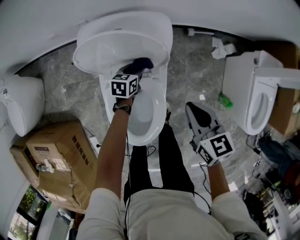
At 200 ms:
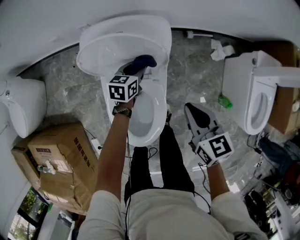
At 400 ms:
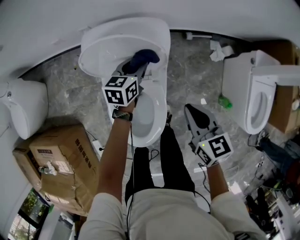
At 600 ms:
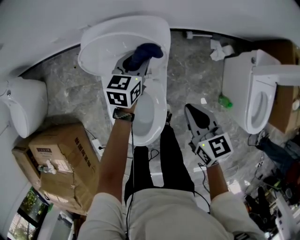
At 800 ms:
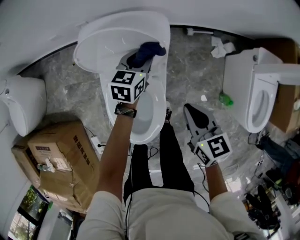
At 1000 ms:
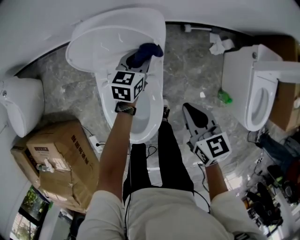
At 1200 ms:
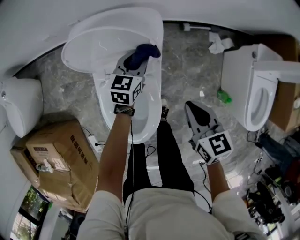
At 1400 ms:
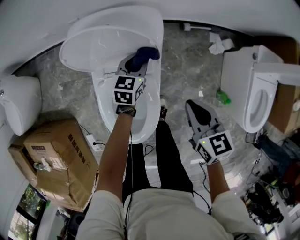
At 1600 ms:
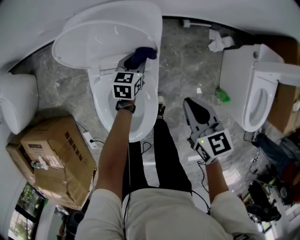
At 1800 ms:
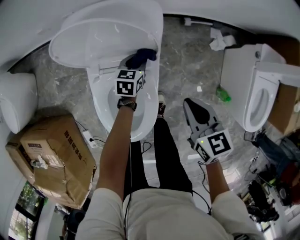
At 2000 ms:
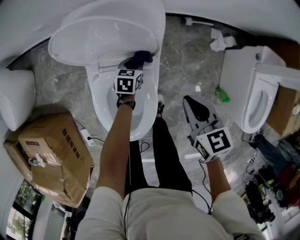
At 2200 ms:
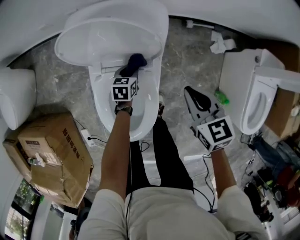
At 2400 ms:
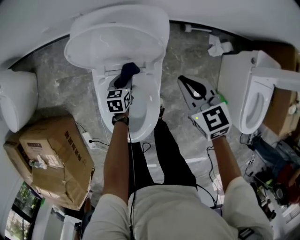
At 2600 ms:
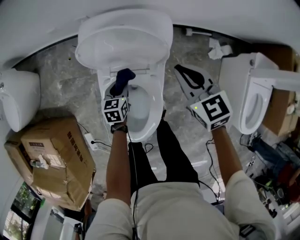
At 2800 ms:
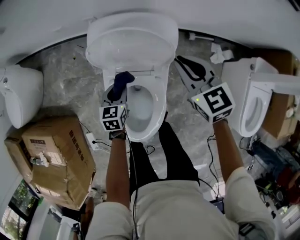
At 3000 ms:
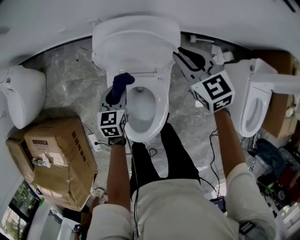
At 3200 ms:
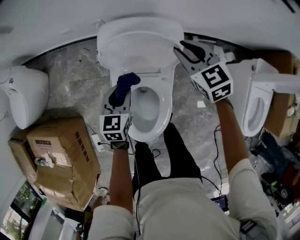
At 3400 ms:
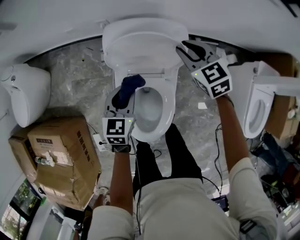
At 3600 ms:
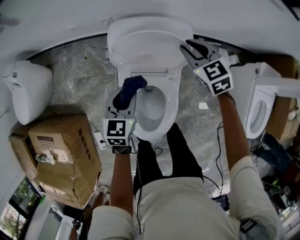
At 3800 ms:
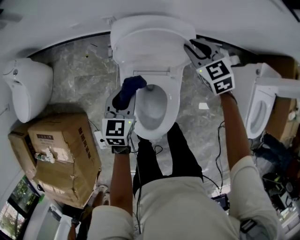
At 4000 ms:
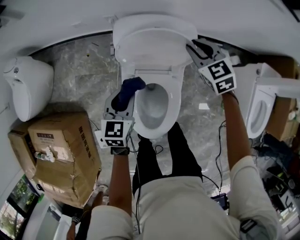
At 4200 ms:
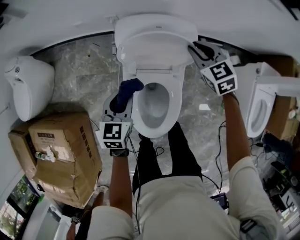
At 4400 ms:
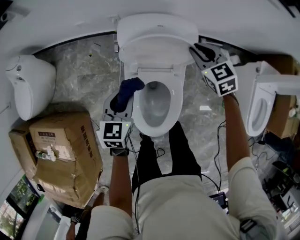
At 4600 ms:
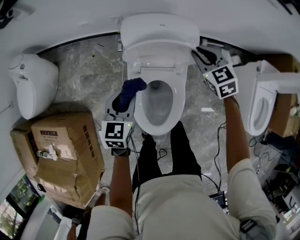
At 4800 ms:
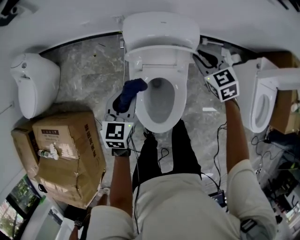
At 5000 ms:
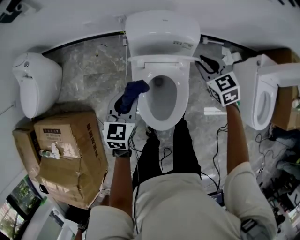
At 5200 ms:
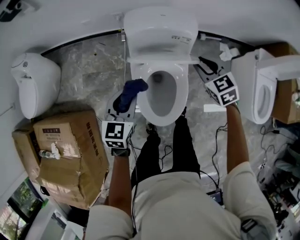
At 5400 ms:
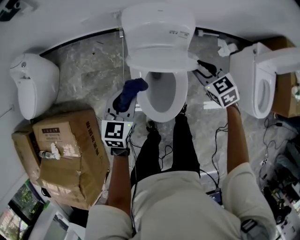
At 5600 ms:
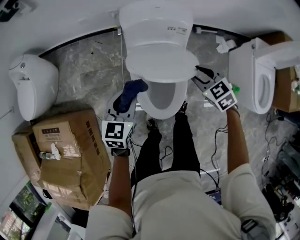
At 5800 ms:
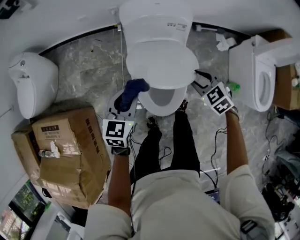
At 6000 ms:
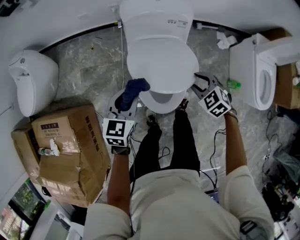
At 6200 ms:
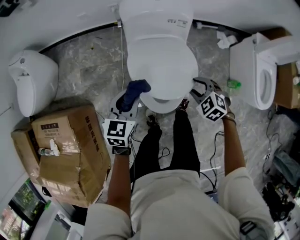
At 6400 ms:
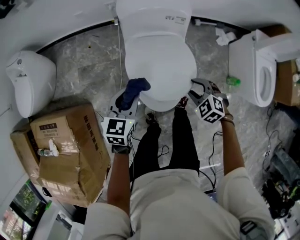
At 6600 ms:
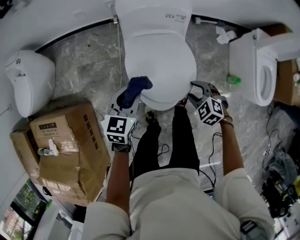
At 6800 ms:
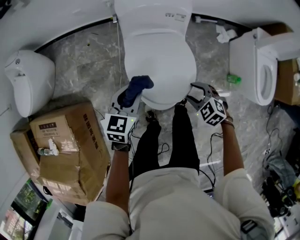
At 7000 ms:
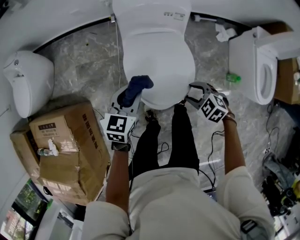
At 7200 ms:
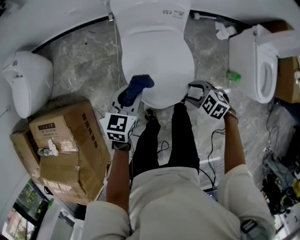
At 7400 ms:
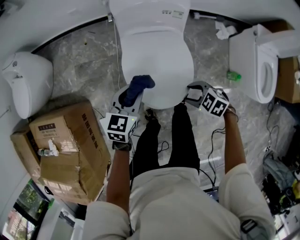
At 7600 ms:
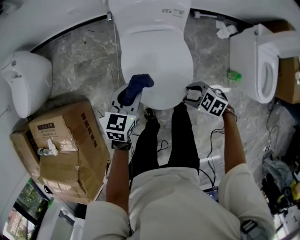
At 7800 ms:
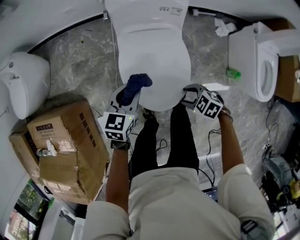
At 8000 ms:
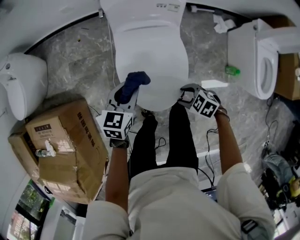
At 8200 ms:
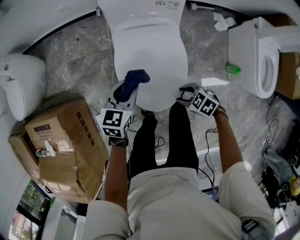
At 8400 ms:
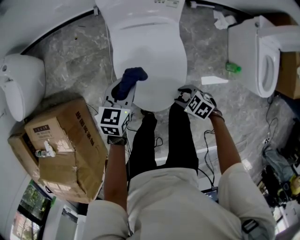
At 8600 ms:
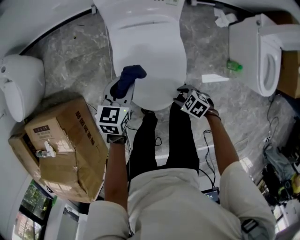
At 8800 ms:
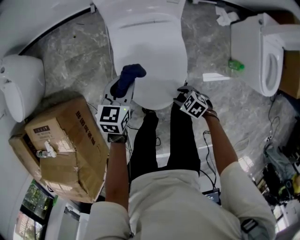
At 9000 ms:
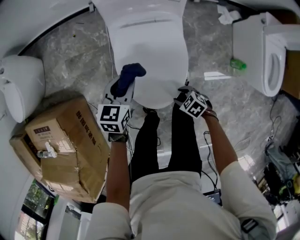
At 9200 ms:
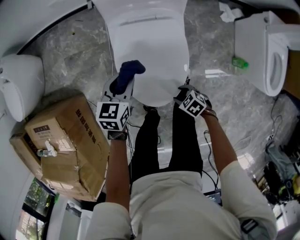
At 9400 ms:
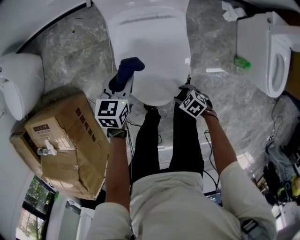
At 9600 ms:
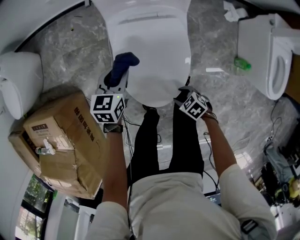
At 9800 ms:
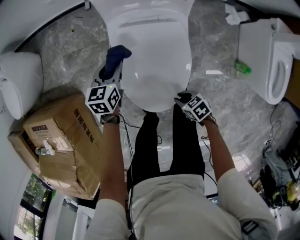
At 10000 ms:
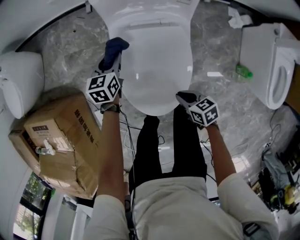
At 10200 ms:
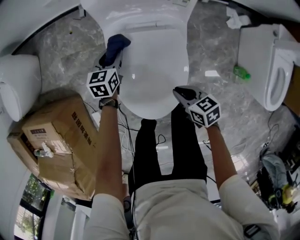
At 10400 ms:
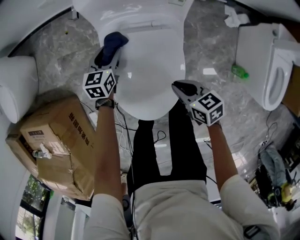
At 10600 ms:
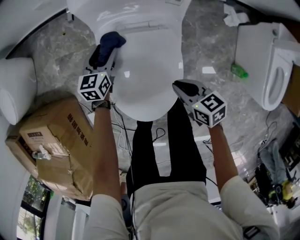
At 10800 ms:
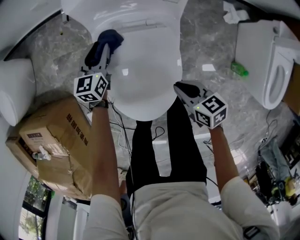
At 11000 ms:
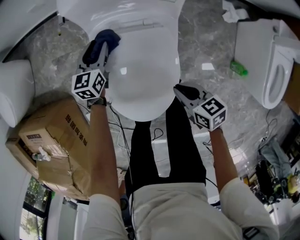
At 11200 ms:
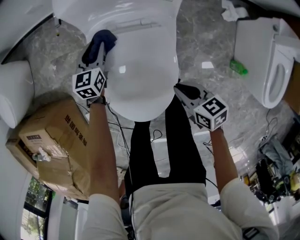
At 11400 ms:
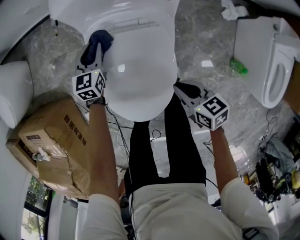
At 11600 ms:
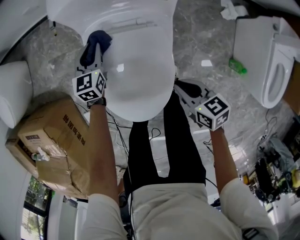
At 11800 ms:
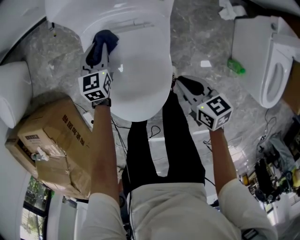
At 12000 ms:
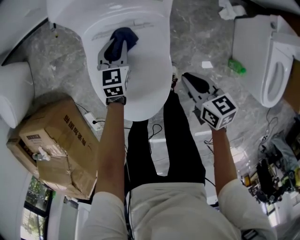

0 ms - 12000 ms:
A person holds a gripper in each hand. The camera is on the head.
0 ms - 1600 ms: The left gripper travels to the right by roughly 5 cm, and moves about 15 cm upward and comes back.
1600 ms - 3000 ms: The right gripper is displaced forward, to the left and upward by some 20 cm, and turns by some 30 degrees; the left gripper travels to the left, upward and backward by roughly 20 cm.
3000 ms - 4400 ms: The left gripper goes roughly 10 cm upward and to the left.
4400 ms - 6000 ms: The right gripper travels backward by approximately 30 cm, and turns by approximately 20 degrees. The left gripper is displaced backward by roughly 15 cm.
6000 ms - 7600 ms: The left gripper ends up approximately 5 cm from where it was, while the right gripper is displaced backward and downward by approximately 10 cm, and rotates about 30 degrees.
7600 ms - 9000 ms: The right gripper shifts about 15 cm downward; the left gripper moves downward, approximately 10 cm.
9000 ms - 10400 ms: The left gripper shifts by roughly 20 cm, and opens. The right gripper changes place by roughly 20 cm, changes its angle by about 40 degrees, and closes.
10400 ms - 12000 ms: Both grippers travel together to the right, about 10 cm. The left gripper closes its fingers.

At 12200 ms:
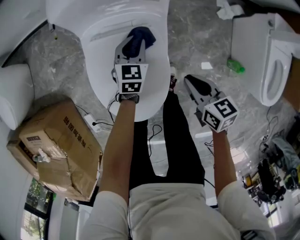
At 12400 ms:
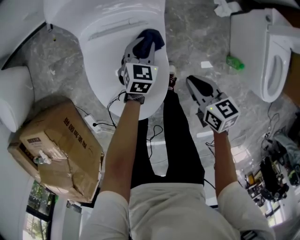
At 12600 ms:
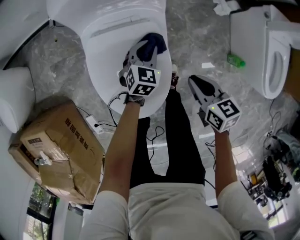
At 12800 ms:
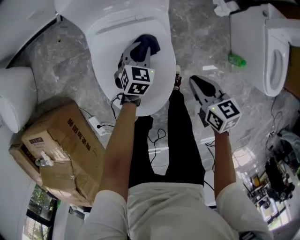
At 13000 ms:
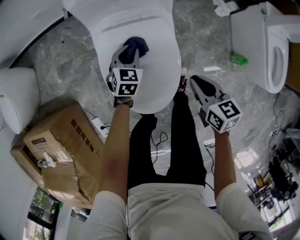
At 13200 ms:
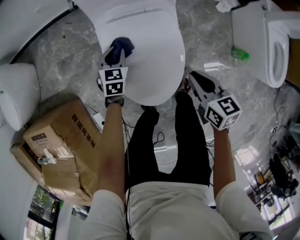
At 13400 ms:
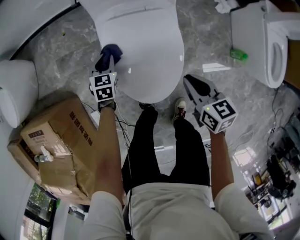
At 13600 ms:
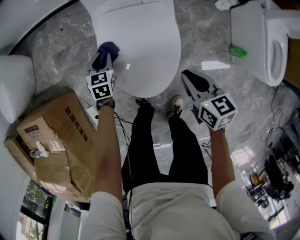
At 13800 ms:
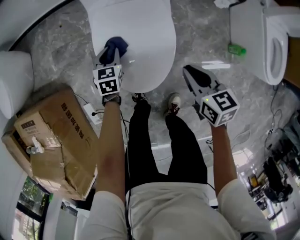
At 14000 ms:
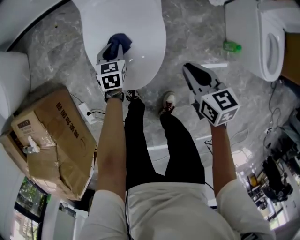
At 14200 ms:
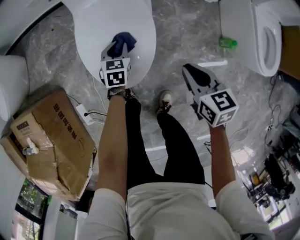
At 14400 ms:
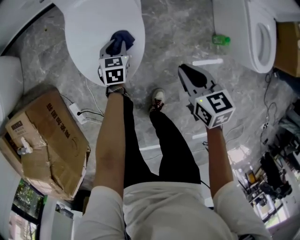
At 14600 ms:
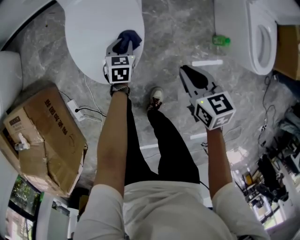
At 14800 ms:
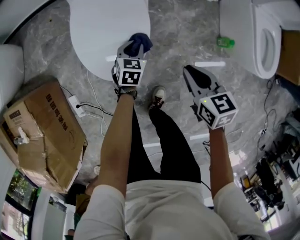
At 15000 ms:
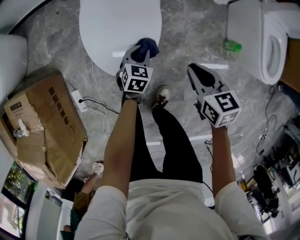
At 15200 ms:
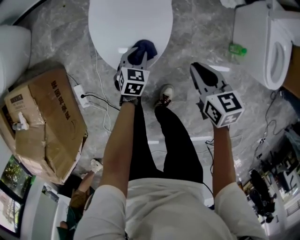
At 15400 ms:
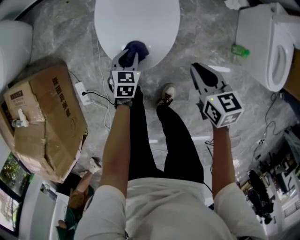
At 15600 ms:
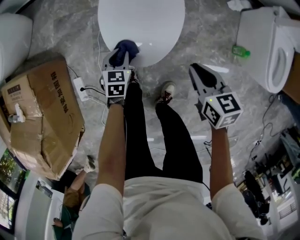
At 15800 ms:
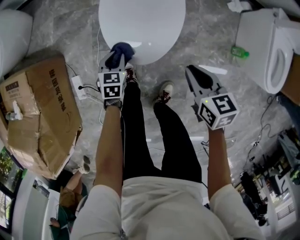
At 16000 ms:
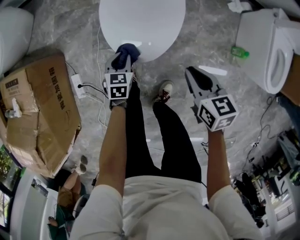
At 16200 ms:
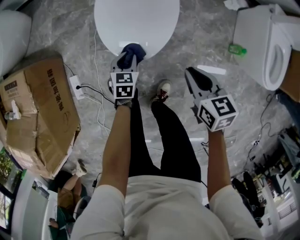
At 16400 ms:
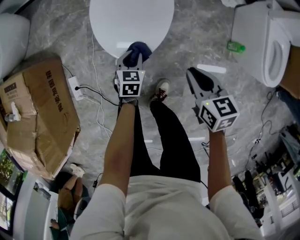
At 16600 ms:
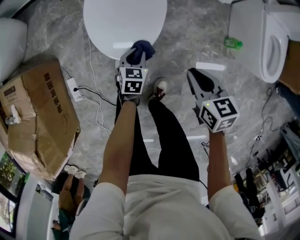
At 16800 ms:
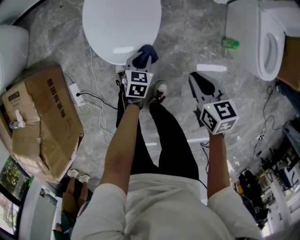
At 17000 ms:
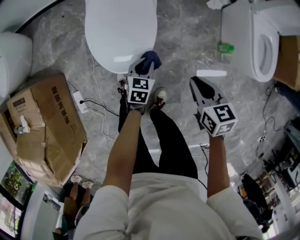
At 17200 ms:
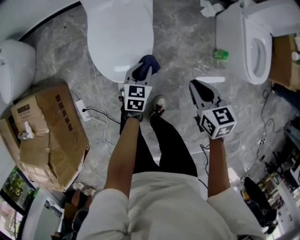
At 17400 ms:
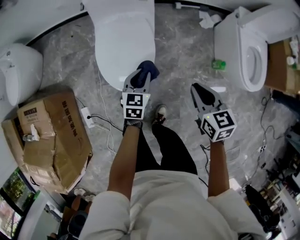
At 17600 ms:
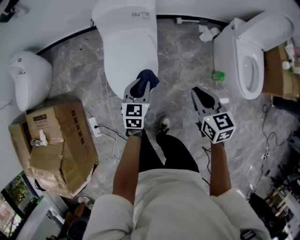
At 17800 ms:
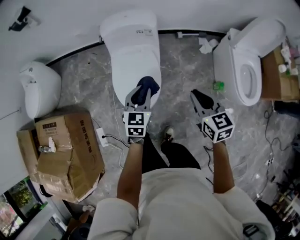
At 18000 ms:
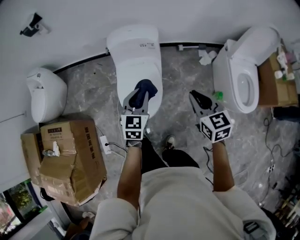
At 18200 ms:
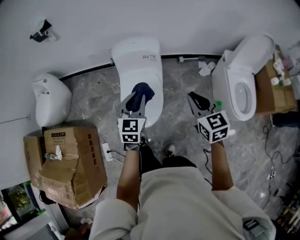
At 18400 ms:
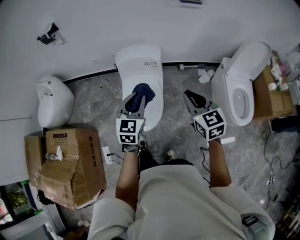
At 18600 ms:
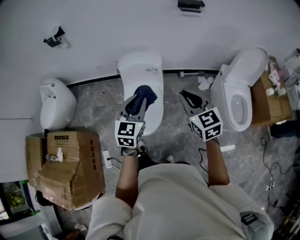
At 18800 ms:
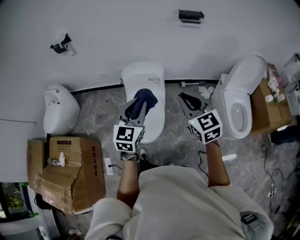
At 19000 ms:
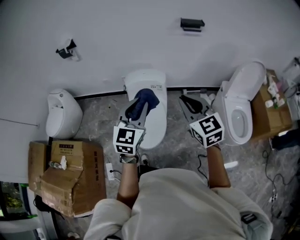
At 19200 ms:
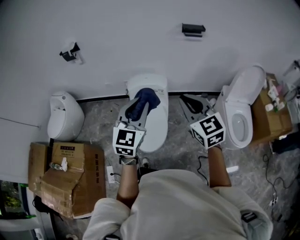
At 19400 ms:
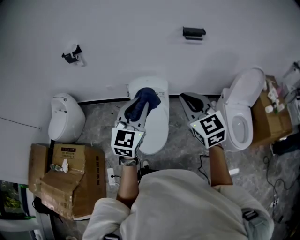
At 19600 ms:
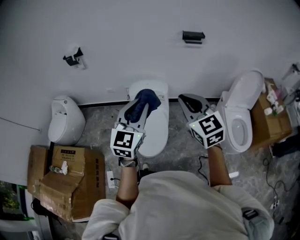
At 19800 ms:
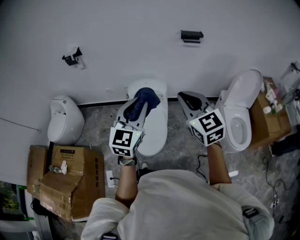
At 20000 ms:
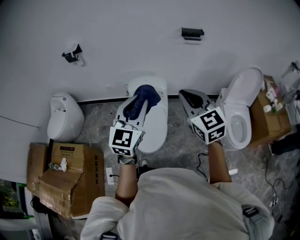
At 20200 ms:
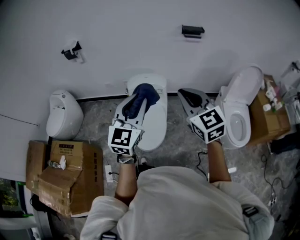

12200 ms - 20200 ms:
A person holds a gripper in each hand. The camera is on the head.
12200 ms - 13800 ms: The right gripper shifts about 10 cm backward and to the left, while the left gripper moves left and right over approximately 25 cm, changing direction 2 times.
13800 ms - 15400 ms: The right gripper moves backward, about 5 cm, and travels to the right and back again, some 10 cm each way; the left gripper heads backward, covering approximately 15 cm, and moves some 20 cm to the right and comes back.
15400 ms - 17000 ms: The left gripper shifts some 15 cm to the right; the right gripper moves backward and to the right, roughly 10 cm.
17000 ms - 18600 ms: The two grippers go approximately 40 cm upward. The right gripper turns by about 40 degrees, while the left gripper angles its fingers upward, by about 30 degrees.
18600 ms - 20200 ms: Both grippers move upward, some 15 cm.

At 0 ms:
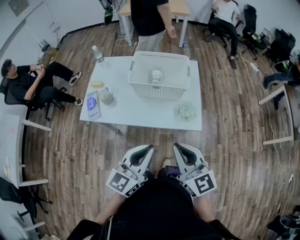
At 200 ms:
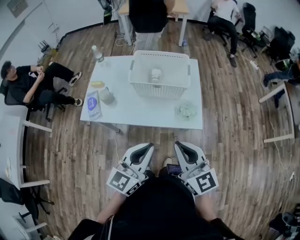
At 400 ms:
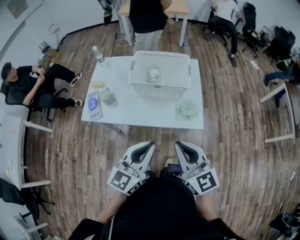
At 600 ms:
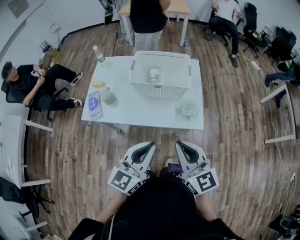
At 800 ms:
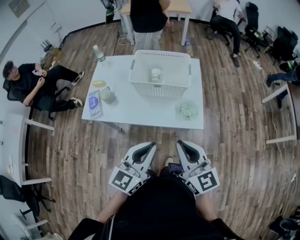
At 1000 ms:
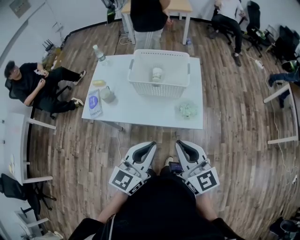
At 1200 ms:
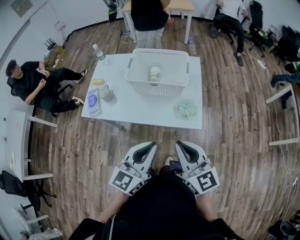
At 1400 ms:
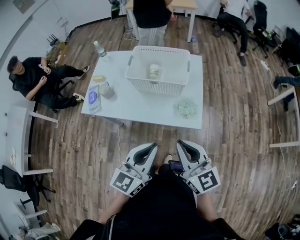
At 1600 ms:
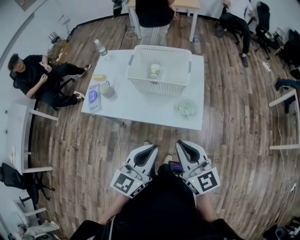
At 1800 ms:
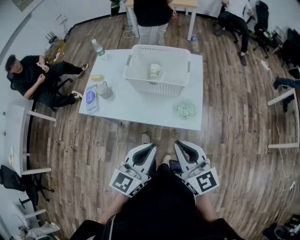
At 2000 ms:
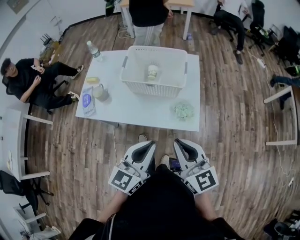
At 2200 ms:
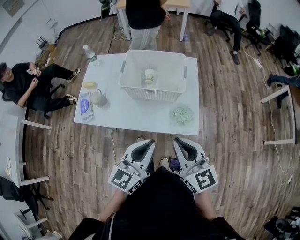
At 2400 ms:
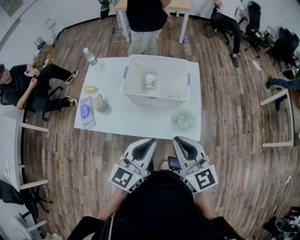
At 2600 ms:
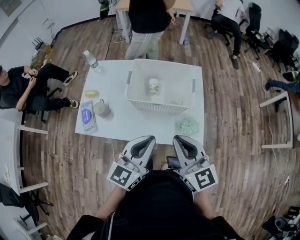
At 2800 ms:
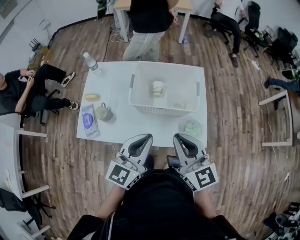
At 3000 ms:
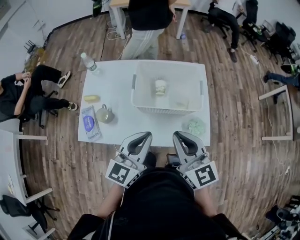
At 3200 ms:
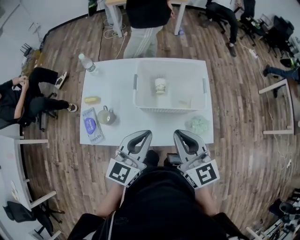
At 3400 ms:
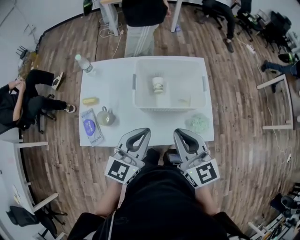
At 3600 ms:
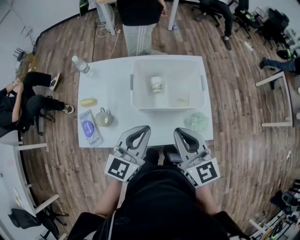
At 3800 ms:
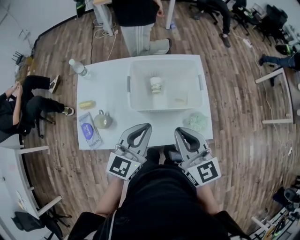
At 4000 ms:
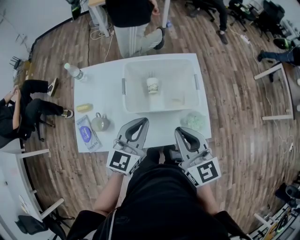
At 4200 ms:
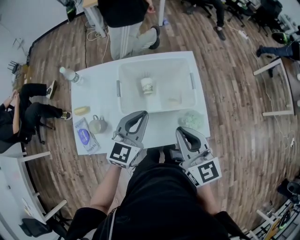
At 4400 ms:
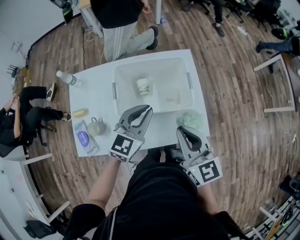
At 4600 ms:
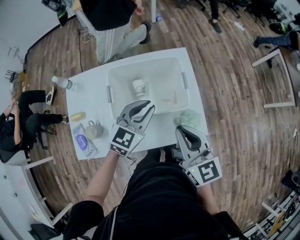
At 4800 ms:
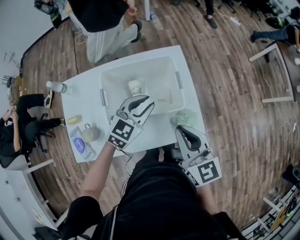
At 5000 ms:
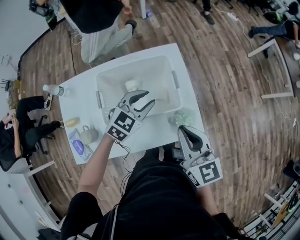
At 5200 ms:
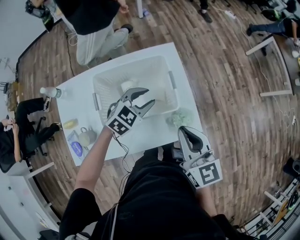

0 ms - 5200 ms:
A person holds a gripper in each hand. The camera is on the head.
0 ms - 1800 ms: Both grippers travel together to the right, roughly 5 cm.
1800 ms - 3400 ms: Both grippers move forward and to the left, roughly 25 cm.
3400 ms - 5200 ms: The left gripper heads forward, to the right and downward, covering roughly 30 cm, tilts its fingers some 30 degrees downward, and opens, while the right gripper shifts some 15 cm to the right and forward.
